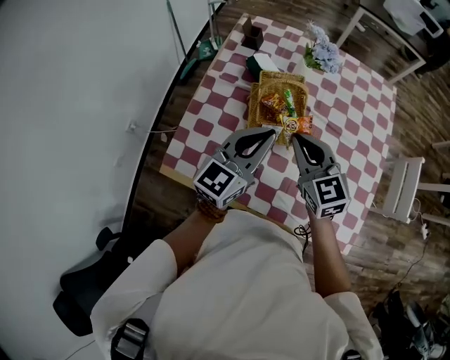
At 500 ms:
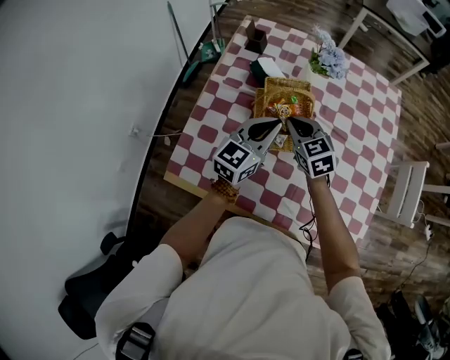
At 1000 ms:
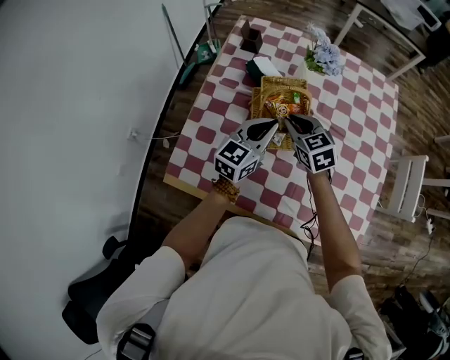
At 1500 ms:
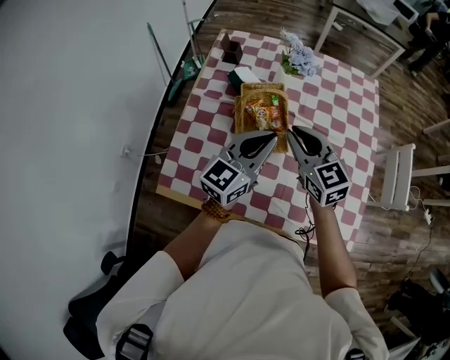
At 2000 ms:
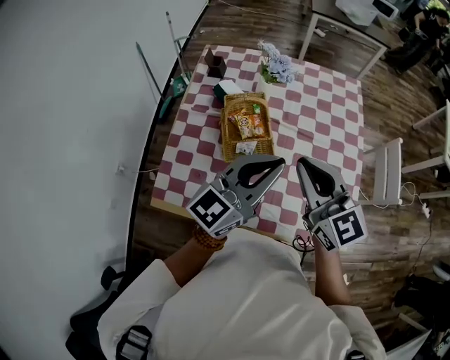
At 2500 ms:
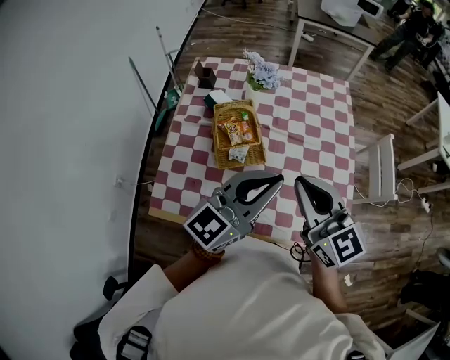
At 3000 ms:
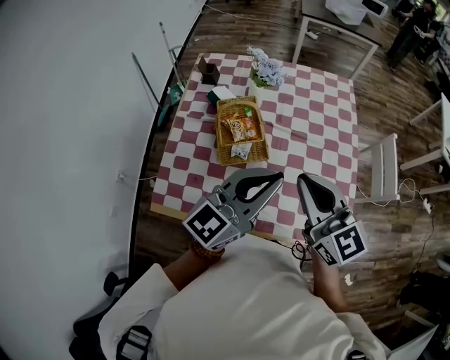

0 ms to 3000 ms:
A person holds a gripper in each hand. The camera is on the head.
0 ms to 1500 ms: The right gripper goes downward and returns, roughly 10 cm each way; the left gripper travels downward and back again, roughly 10 cm each way.
1500 ms to 3000 ms: Both grippers travel together upward, backward and to the right, some 20 cm.

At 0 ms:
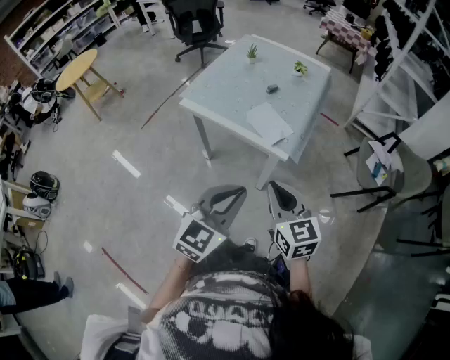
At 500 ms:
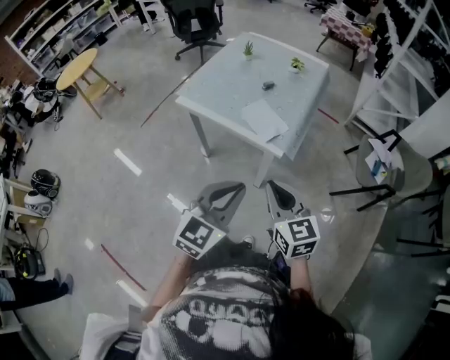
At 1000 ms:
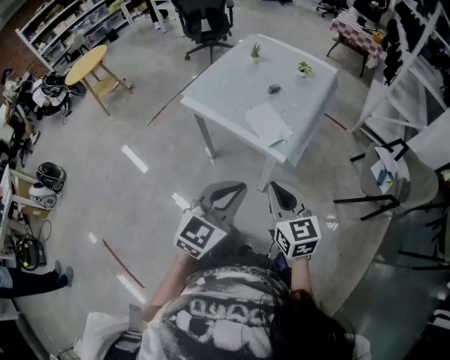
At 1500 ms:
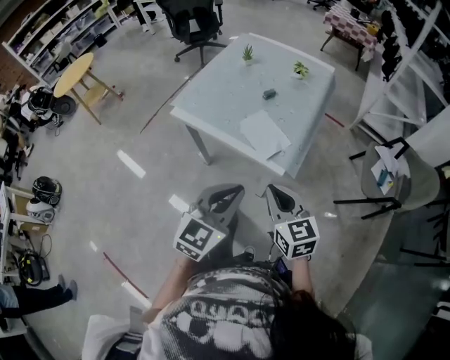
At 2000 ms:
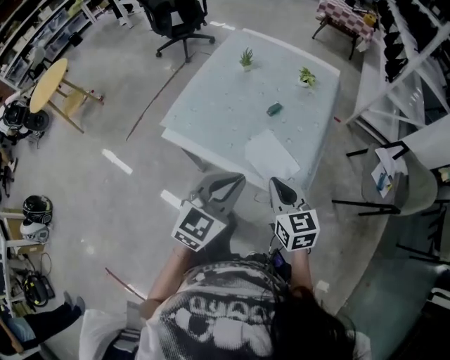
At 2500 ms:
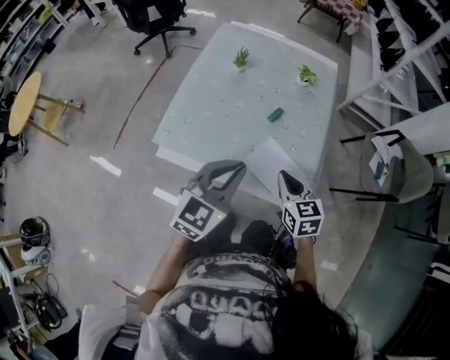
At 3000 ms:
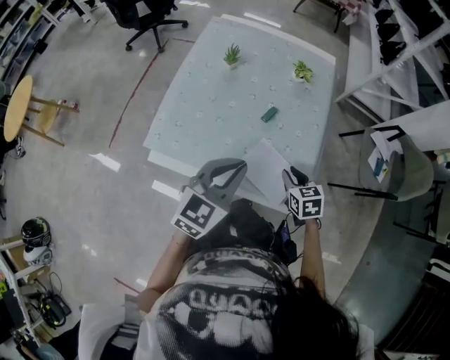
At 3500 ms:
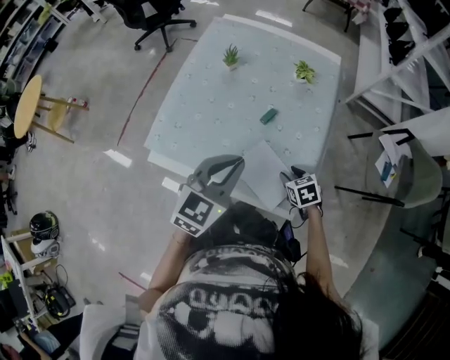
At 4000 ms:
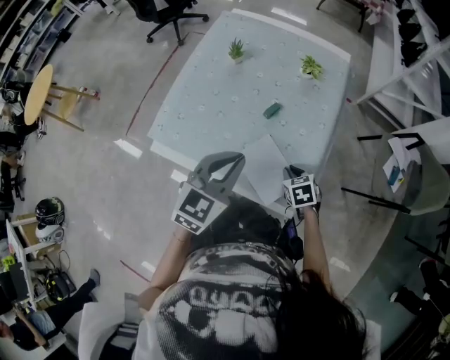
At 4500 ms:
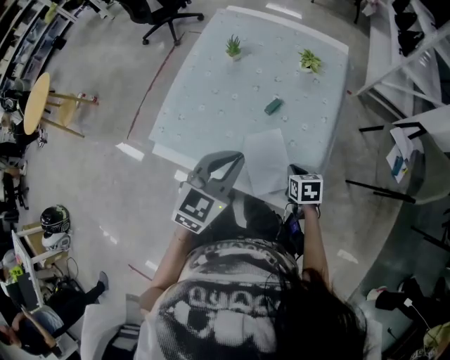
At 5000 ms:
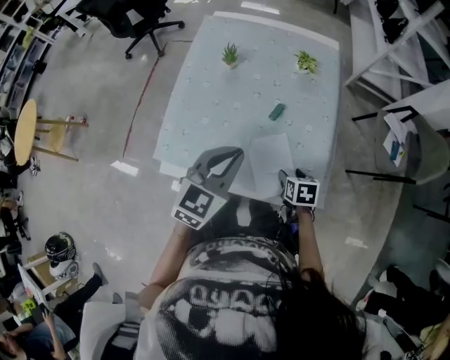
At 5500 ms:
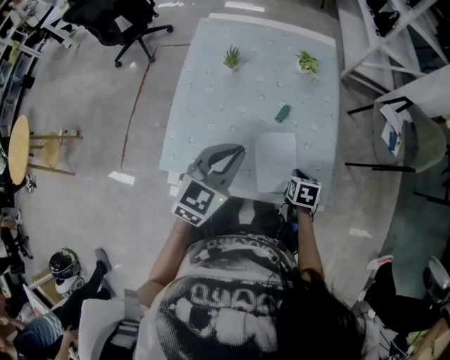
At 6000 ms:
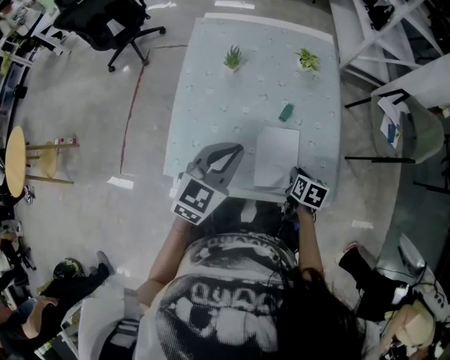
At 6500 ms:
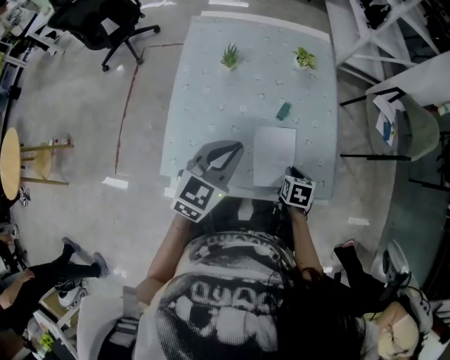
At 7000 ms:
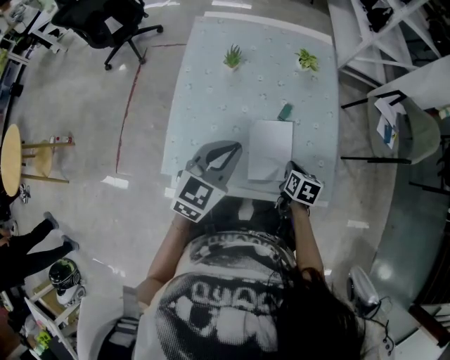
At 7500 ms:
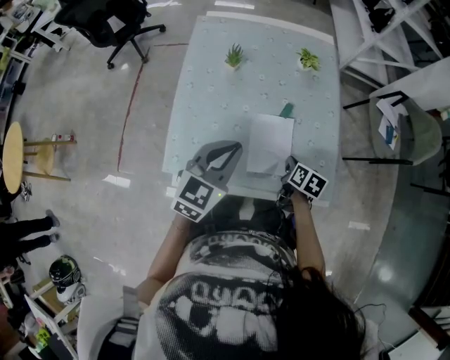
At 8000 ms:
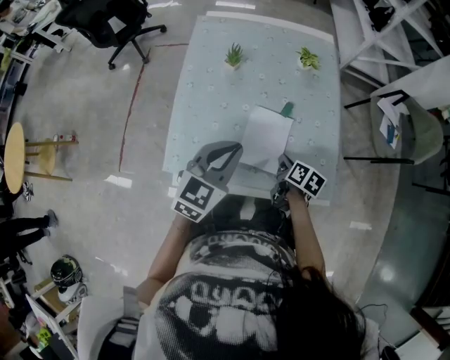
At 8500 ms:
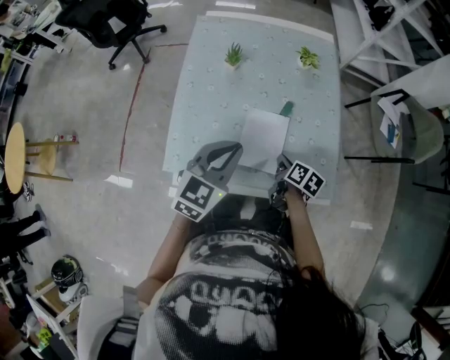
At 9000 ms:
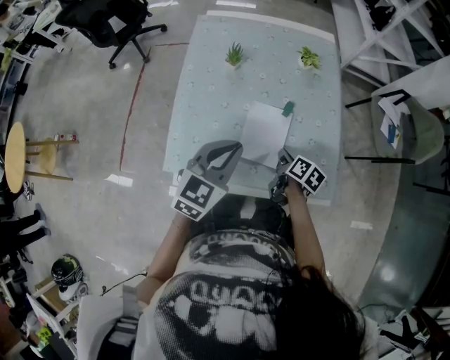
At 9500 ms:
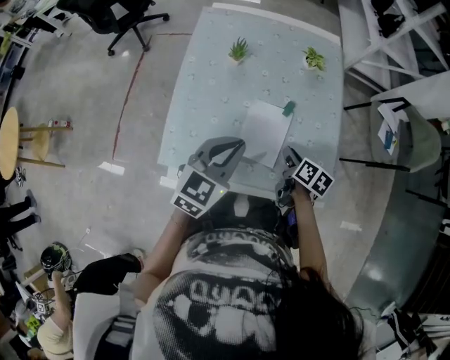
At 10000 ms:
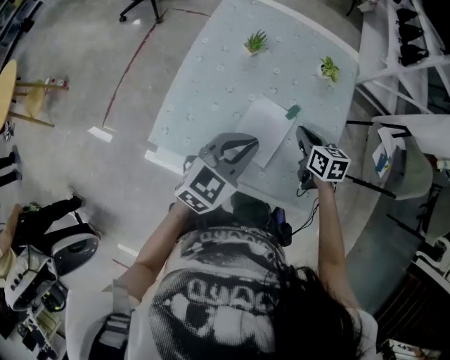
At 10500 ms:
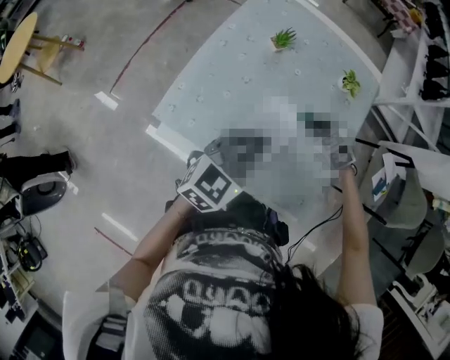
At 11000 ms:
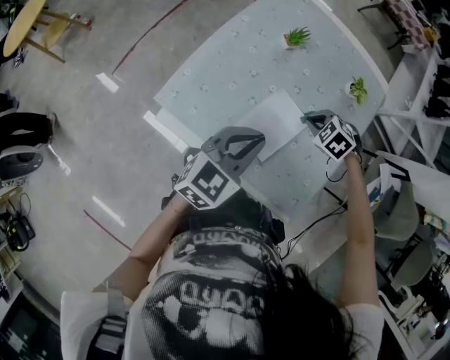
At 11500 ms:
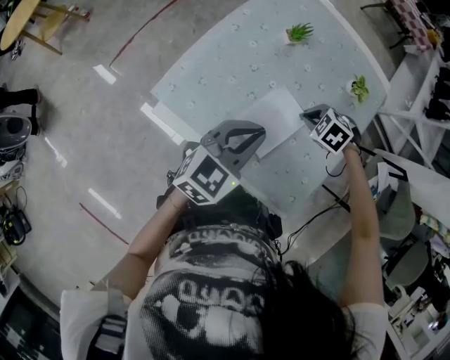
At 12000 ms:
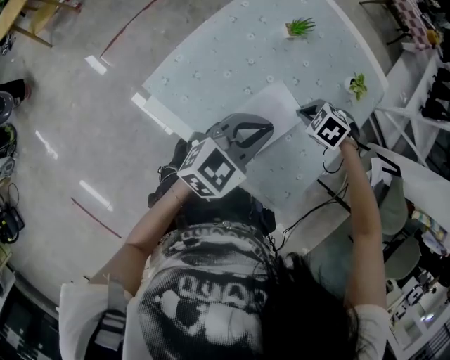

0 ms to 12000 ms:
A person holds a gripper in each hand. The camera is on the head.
0 ms to 2000 ms: The two grippers go some 25 cm forward.
2000 ms to 4000 ms: The right gripper travels downward and forward by about 25 cm, tips its fingers downward by approximately 40 degrees, and opens, then closes once more; the left gripper heads forward, covering roughly 15 cm.
4000 ms to 6000 ms: The right gripper shifts by about 10 cm, rotates around the line of its fingers by roughly 50 degrees, clockwise from behind, and opens, then closes again; the left gripper changes place by about 15 cm.
6000 ms to 8000 ms: The right gripper is displaced to the left by some 5 cm, and changes its angle by roughly 20 degrees.
8000 ms to 10000 ms: The right gripper is displaced forward and upward by about 15 cm, and rotates around the line of its fingers by about 40 degrees, counterclockwise from behind.
10000 ms to 12000 ms: The right gripper shifts about 5 cm downward, and rotates around the line of its fingers by some 80 degrees, counterclockwise from behind.

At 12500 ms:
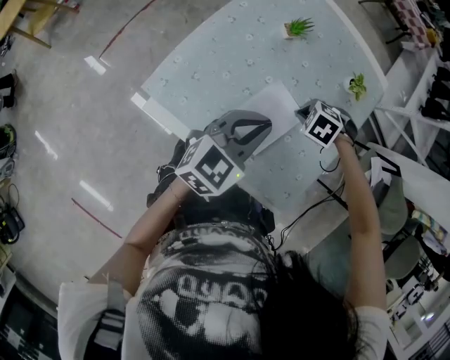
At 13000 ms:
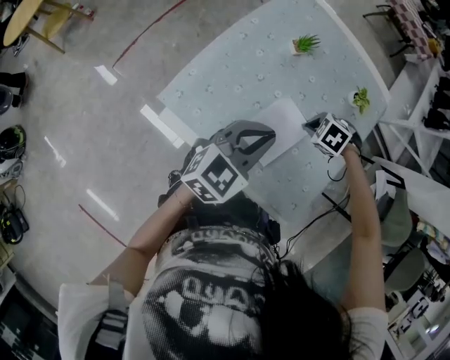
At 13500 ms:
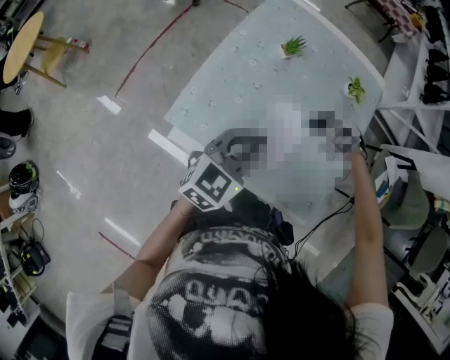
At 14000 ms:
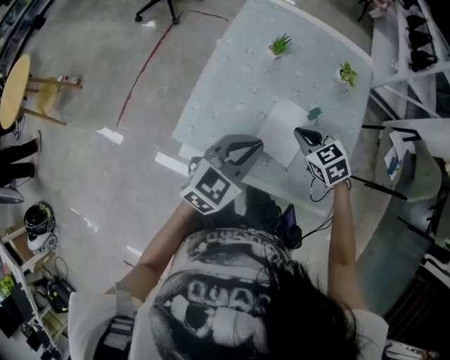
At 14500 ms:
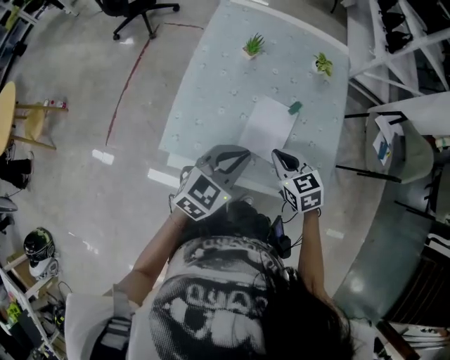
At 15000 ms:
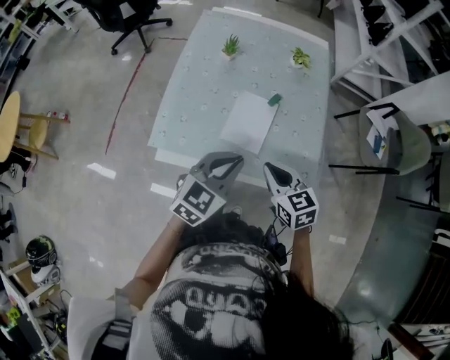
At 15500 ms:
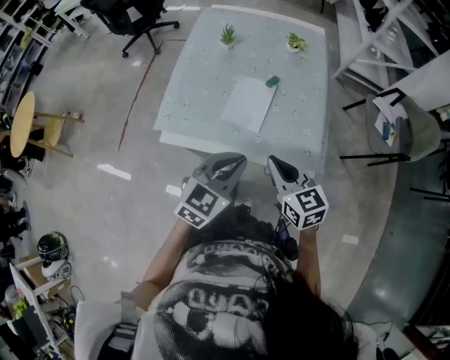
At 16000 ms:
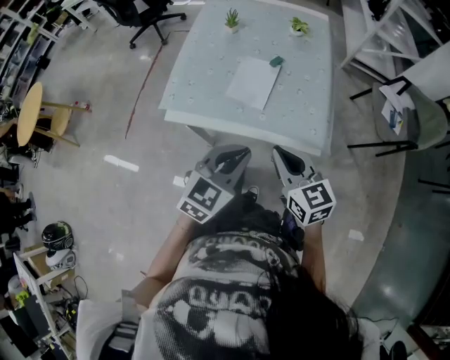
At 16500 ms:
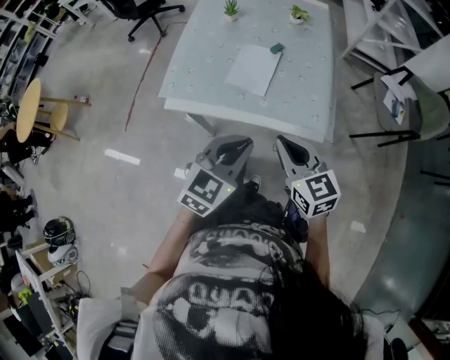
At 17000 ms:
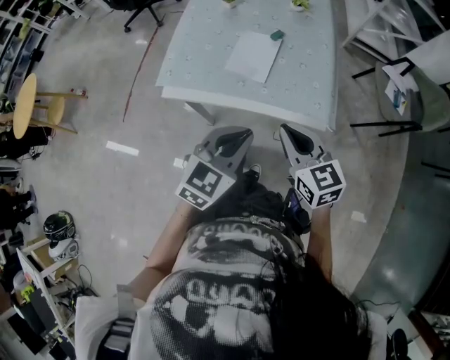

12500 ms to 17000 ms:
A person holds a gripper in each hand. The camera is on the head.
12500 ms to 14500 ms: The right gripper shifts by some 20 cm, and points its fingers roughly 40 degrees further upward; the left gripper ends up some 10 cm from where it was.
14500 ms to 17000 ms: The left gripper travels backward and to the right by approximately 25 cm, while the right gripper heads backward, to the right and upward, covering approximately 25 cm, and swivels roughly 20 degrees.

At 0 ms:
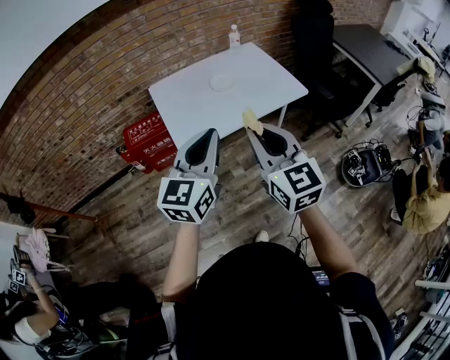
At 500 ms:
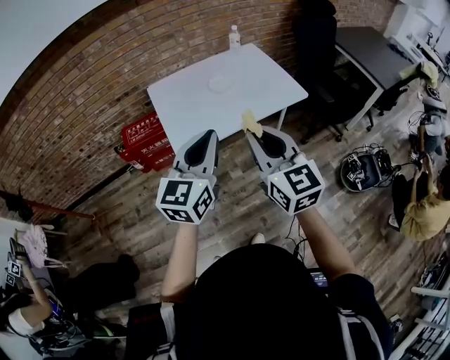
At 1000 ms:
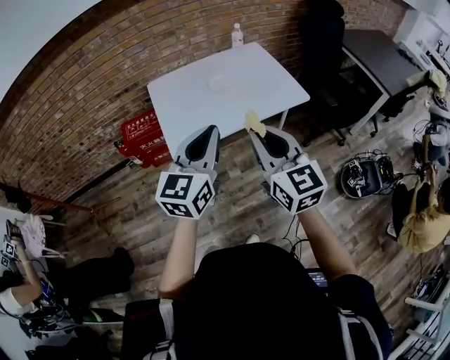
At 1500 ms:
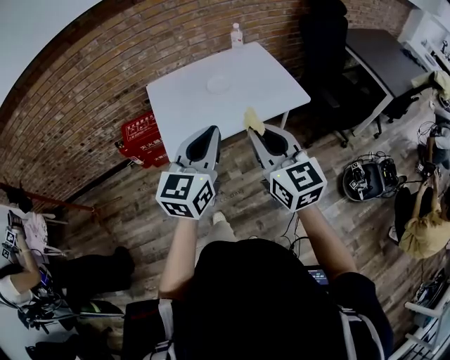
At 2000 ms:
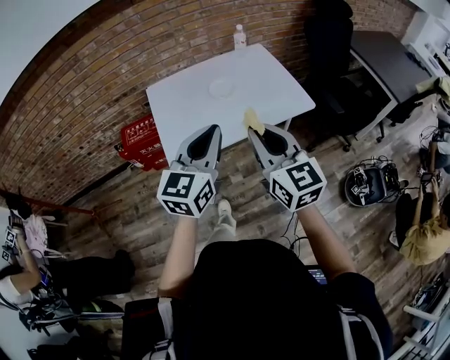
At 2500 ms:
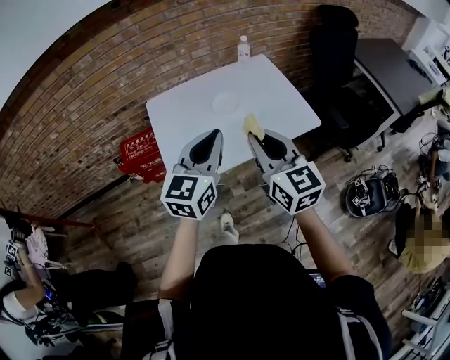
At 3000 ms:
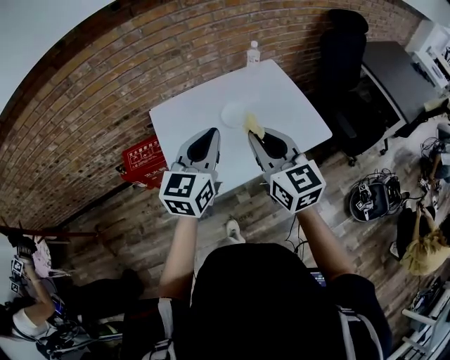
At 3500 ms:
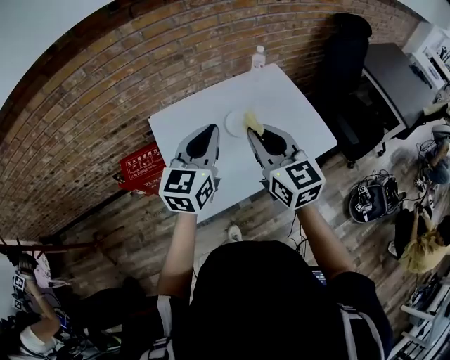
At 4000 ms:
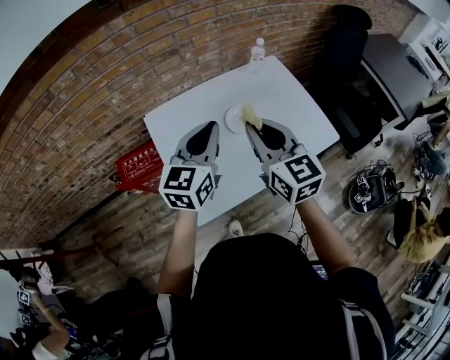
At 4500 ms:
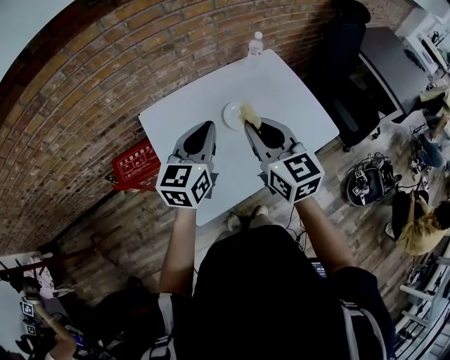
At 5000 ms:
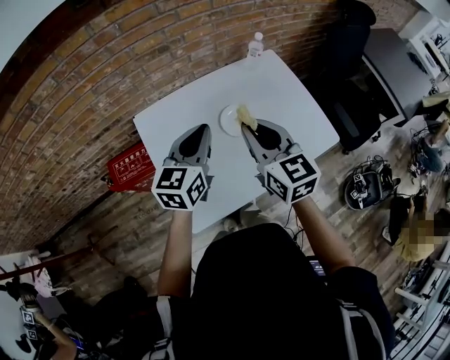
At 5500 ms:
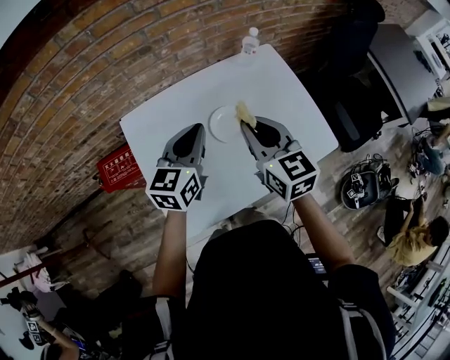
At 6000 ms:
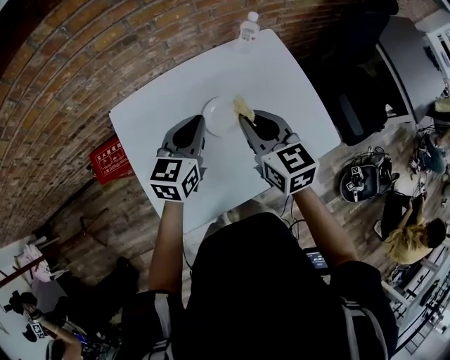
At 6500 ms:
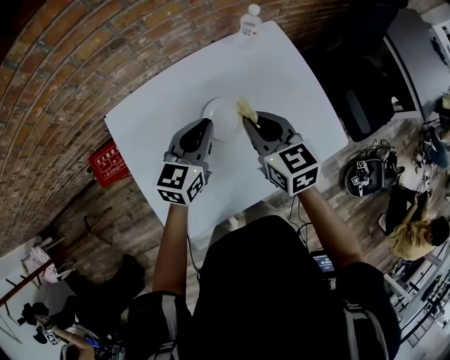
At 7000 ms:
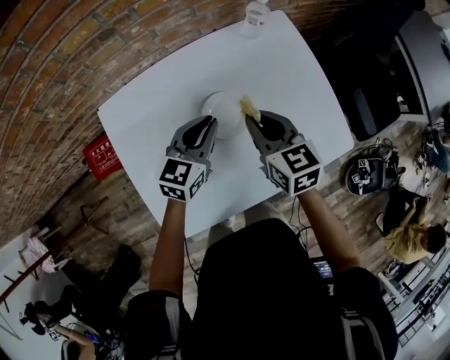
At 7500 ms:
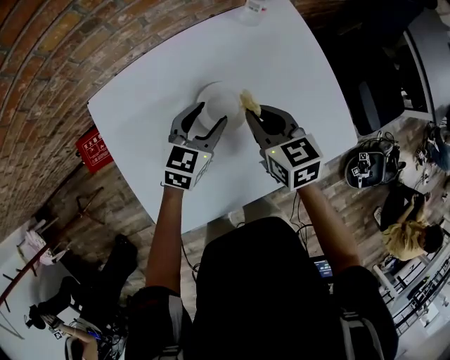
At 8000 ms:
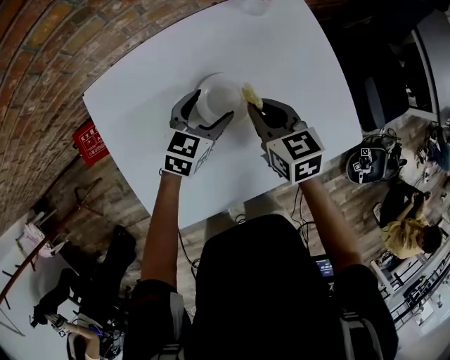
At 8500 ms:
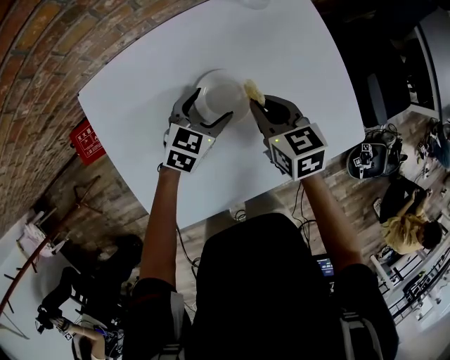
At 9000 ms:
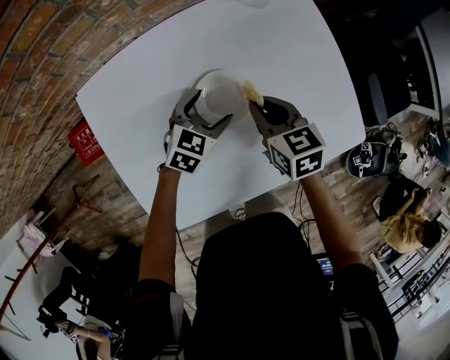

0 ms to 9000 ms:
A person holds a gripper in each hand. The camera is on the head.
0 ms to 2000 ms: The grippers both shift forward and to the right by roughly 15 cm.
2000 ms to 4500 ms: The grippers both shift forward and to the left by about 35 cm.
4500 ms to 7000 ms: The grippers both shift downward, forward and to the right by approximately 25 cm. The right gripper changes its angle by some 20 degrees.
7000 ms to 9000 ms: Both grippers move downward, some 10 cm. The left gripper swivels about 20 degrees, and opens up.
